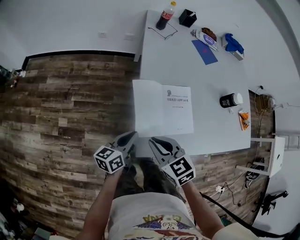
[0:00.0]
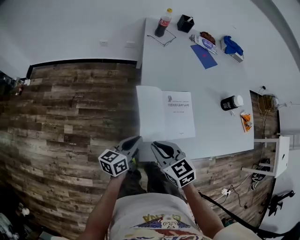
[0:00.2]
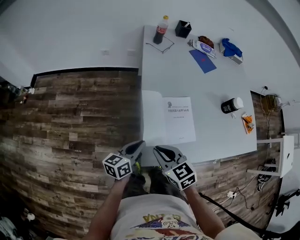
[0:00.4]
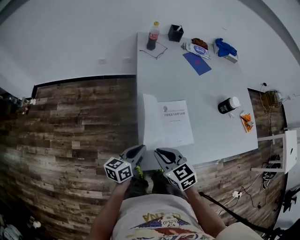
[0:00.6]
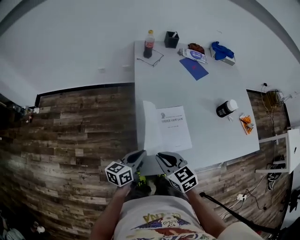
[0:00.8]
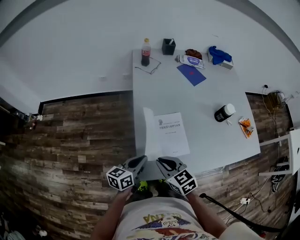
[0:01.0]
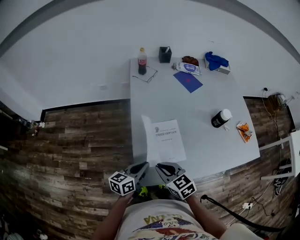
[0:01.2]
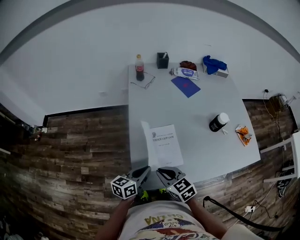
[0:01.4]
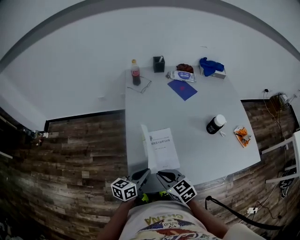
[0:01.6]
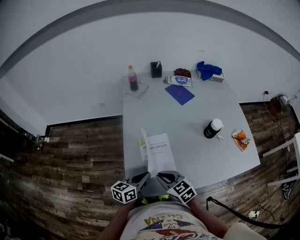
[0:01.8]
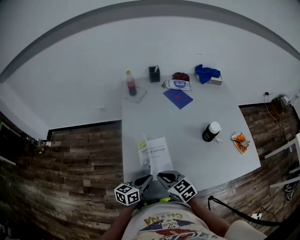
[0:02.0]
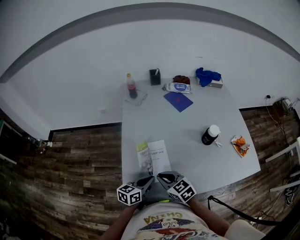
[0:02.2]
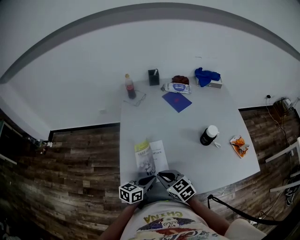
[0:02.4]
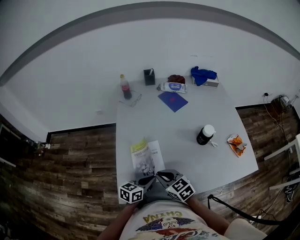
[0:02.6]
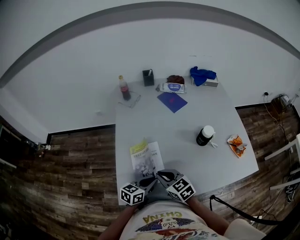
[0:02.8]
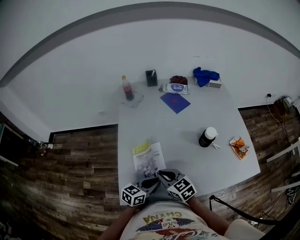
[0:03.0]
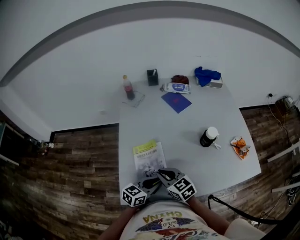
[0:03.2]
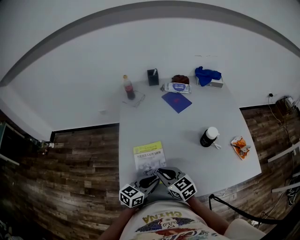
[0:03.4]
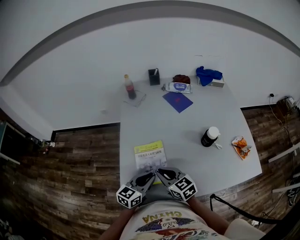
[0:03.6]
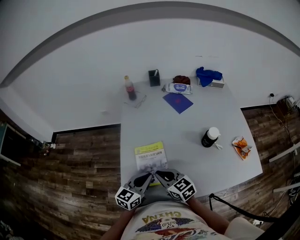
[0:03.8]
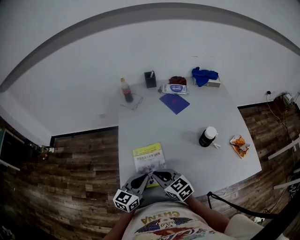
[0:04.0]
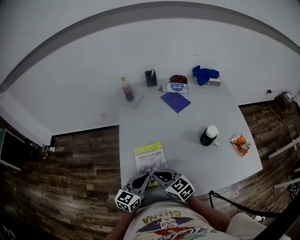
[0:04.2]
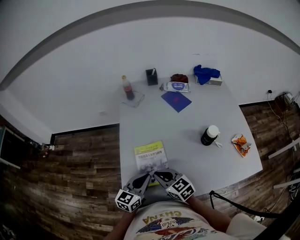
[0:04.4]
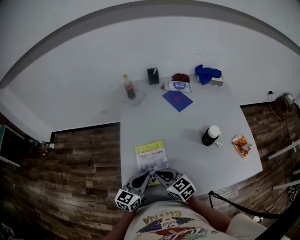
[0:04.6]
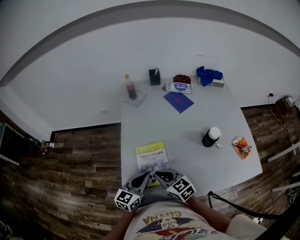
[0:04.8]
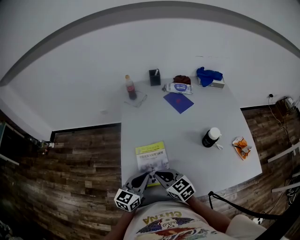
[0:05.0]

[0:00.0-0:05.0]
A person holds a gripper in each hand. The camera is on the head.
0.0 to 1.6 s: The right gripper is displaced to the right by about 15 cm, while the left gripper travels to the right and upward by about 20 cm.
1.6 to 3.4 s: The left gripper heads to the right, covering some 15 cm. Meanwhile the right gripper travels to the right and forward by about 10 cm.
3.4 to 5.0 s: The left gripper is displaced to the left by about 5 cm.

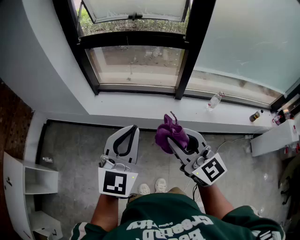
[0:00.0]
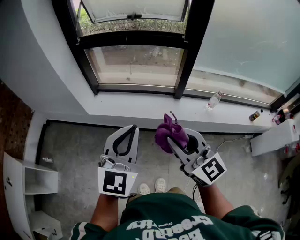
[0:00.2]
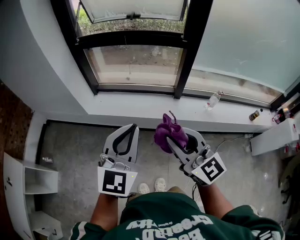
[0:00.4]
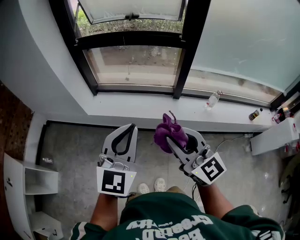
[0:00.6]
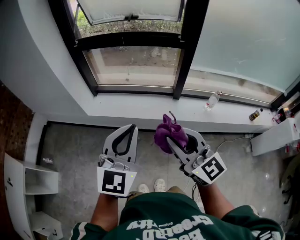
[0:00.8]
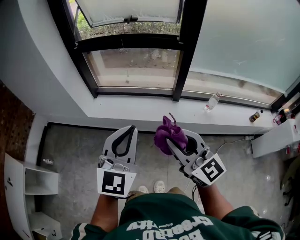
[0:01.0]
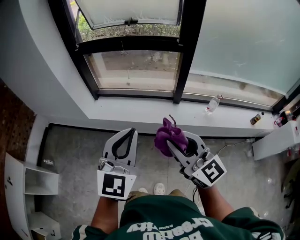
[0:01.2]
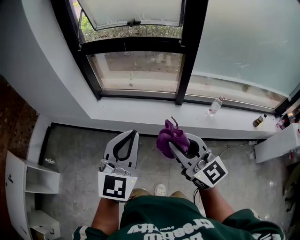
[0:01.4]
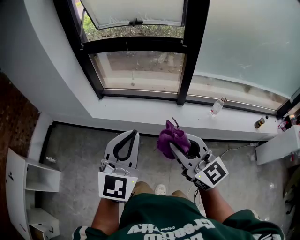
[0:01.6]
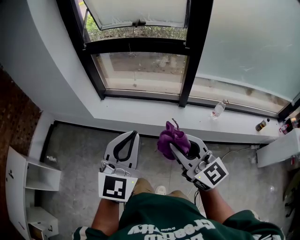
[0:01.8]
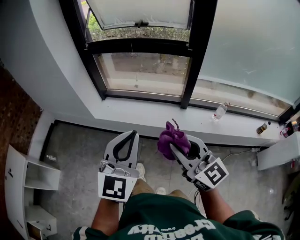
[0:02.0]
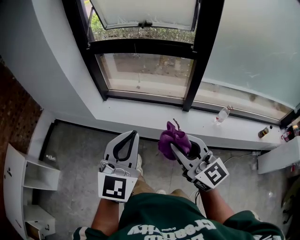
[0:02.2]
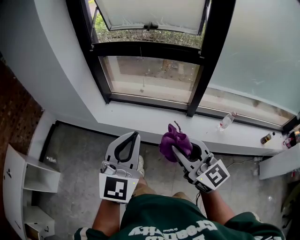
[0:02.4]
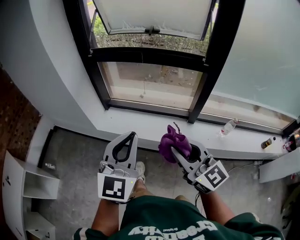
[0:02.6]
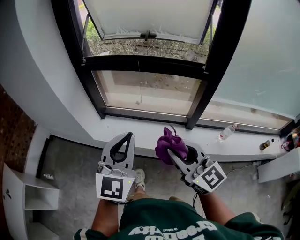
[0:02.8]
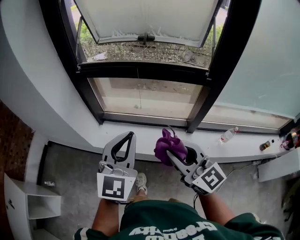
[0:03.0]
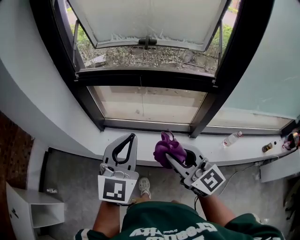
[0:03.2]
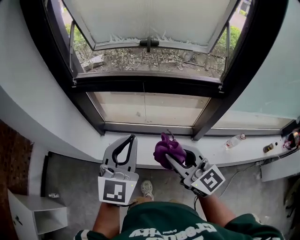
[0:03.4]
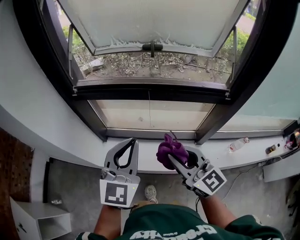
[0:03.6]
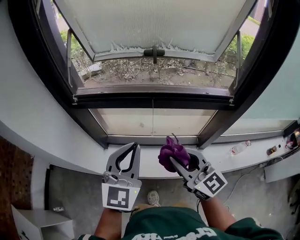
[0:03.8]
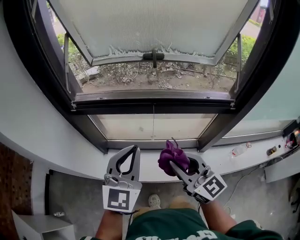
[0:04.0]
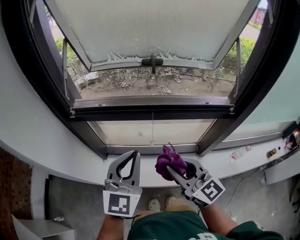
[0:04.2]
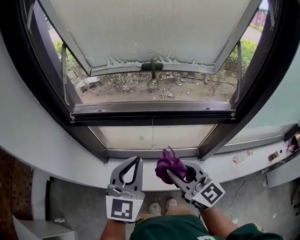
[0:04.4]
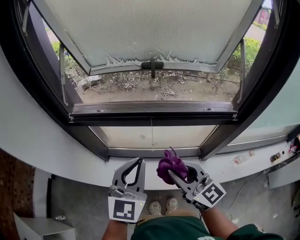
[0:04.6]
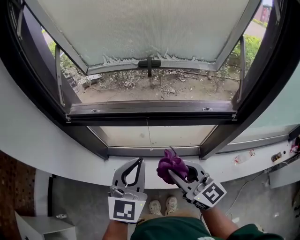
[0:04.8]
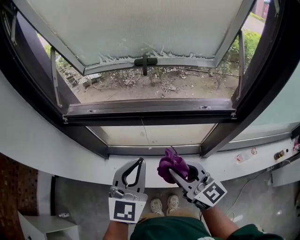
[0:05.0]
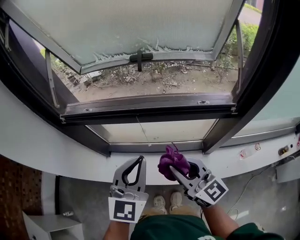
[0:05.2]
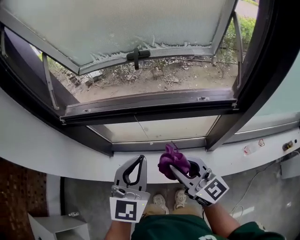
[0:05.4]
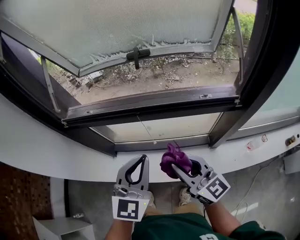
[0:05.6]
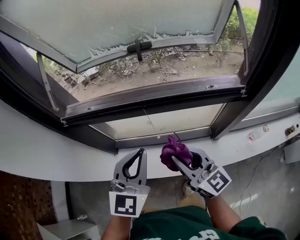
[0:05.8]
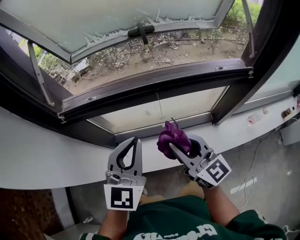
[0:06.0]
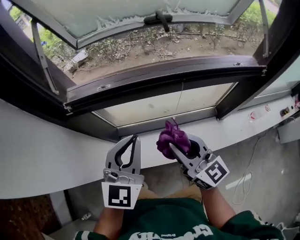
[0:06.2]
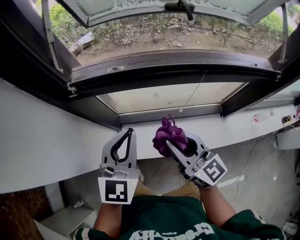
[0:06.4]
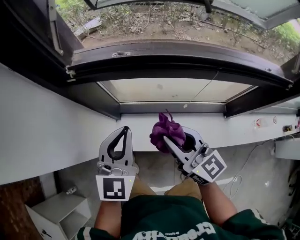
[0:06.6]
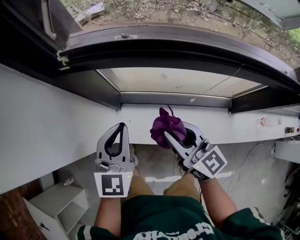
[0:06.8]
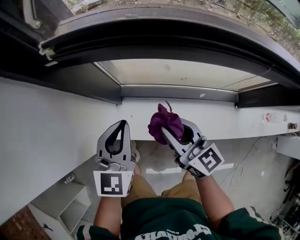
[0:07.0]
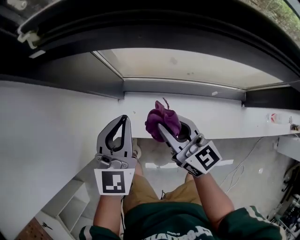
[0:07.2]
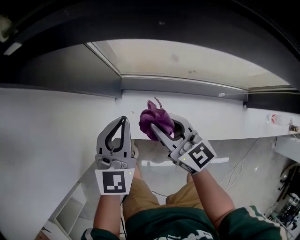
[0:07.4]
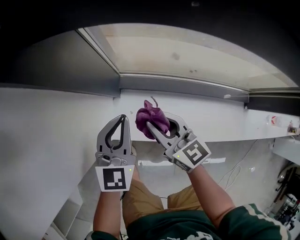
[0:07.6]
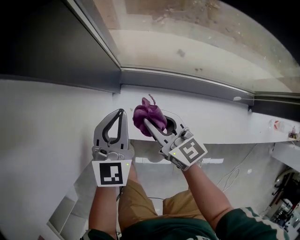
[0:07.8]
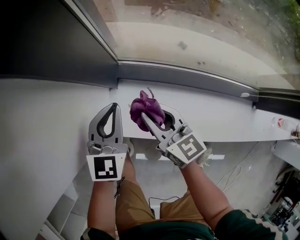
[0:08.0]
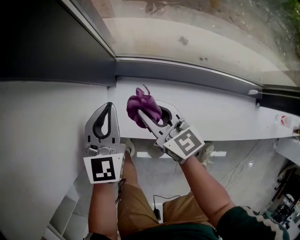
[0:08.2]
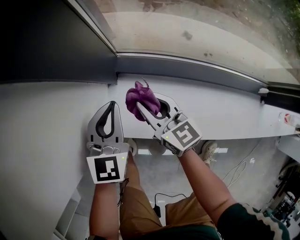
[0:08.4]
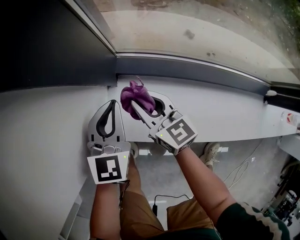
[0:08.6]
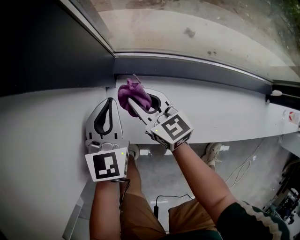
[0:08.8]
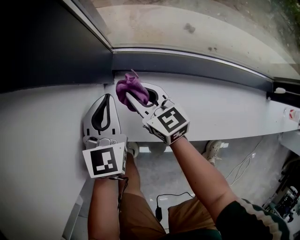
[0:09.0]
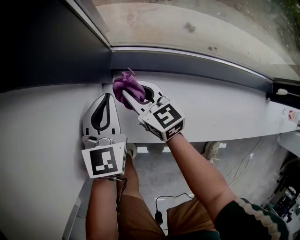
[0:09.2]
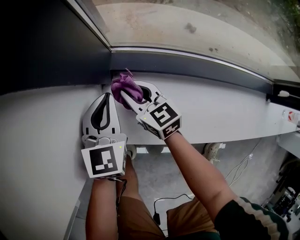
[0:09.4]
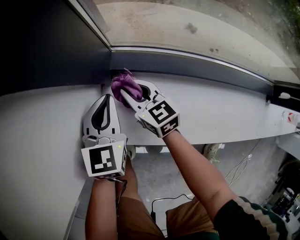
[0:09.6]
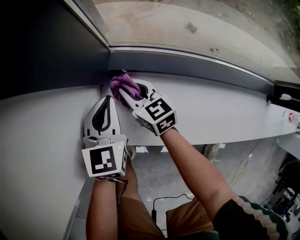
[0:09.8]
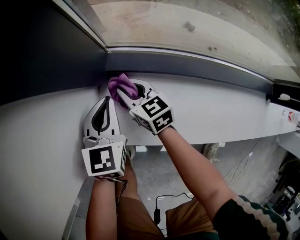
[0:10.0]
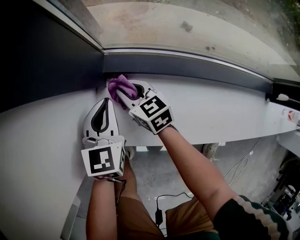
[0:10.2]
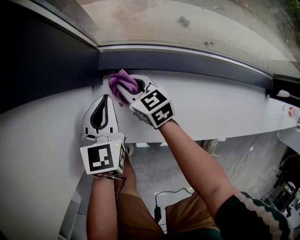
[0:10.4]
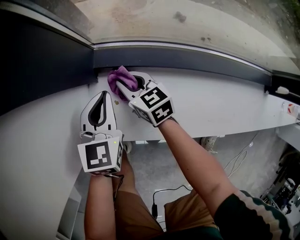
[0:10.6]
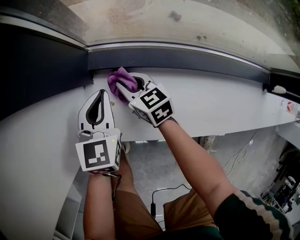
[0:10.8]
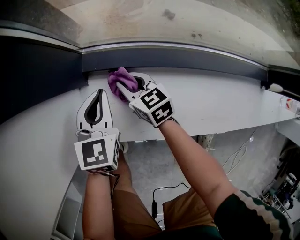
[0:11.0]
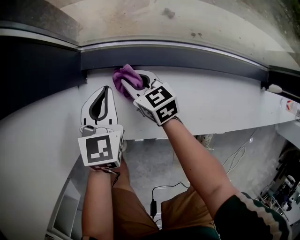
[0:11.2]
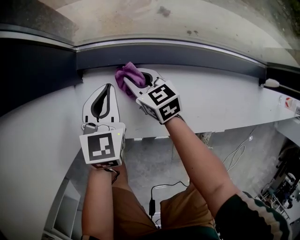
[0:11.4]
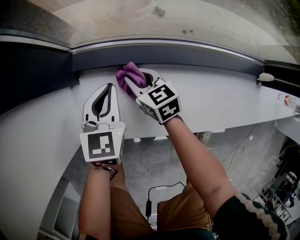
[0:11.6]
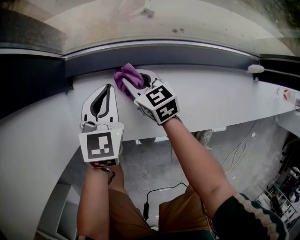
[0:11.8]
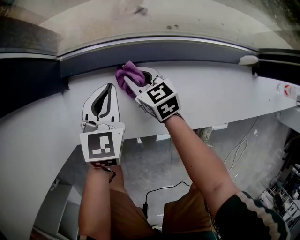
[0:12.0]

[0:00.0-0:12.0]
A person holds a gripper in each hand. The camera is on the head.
0.0 to 1.6 s: The left gripper changes place by about 5 cm. The right gripper moves to the right, approximately 5 cm.
1.6 to 3.0 s: Both grippers travel together forward, approximately 30 cm.
3.0 to 4.4 s: Both grippers travel together forward, approximately 25 cm.
4.4 to 6.0 s: Both grippers move forward and downward, roughly 10 cm. The left gripper moves roughly 10 cm to the right and comes back. The right gripper goes to the right and returns, roughly 10 cm each way.
6.0 to 7.6 s: The two grippers go some 40 cm downward and to the left. The right gripper swivels some 30 degrees. The left gripper turns by some 20 degrees.
7.6 to 9.0 s: The two grippers go some 20 cm downward.
9.0 to 10.4 s: The right gripper is displaced downward by roughly 5 cm.
10.4 to 12.0 s: Both grippers move to the right, roughly 15 cm.

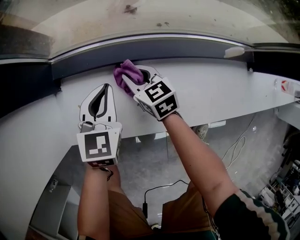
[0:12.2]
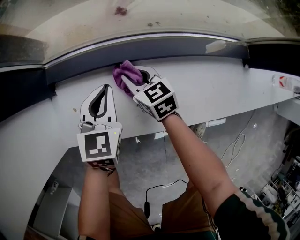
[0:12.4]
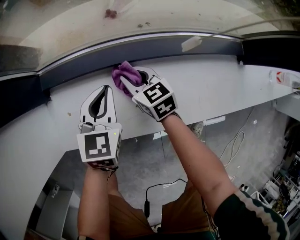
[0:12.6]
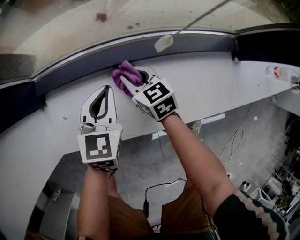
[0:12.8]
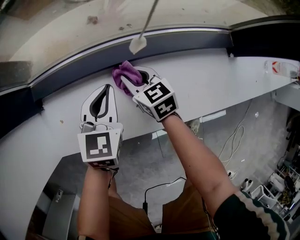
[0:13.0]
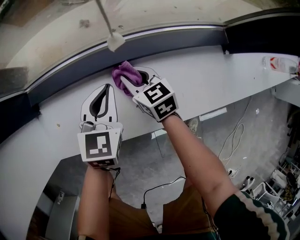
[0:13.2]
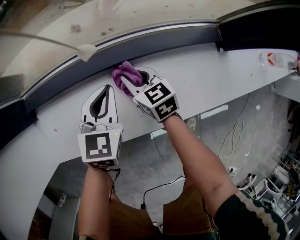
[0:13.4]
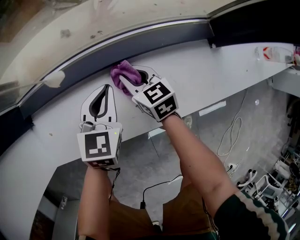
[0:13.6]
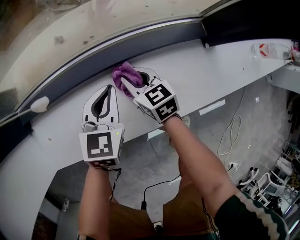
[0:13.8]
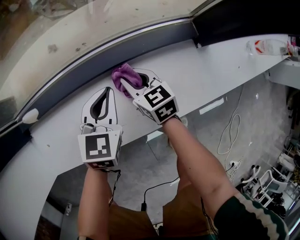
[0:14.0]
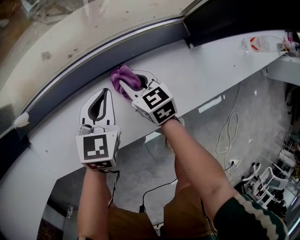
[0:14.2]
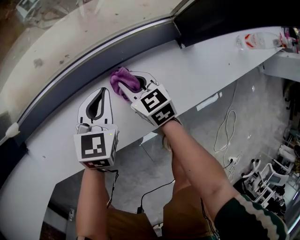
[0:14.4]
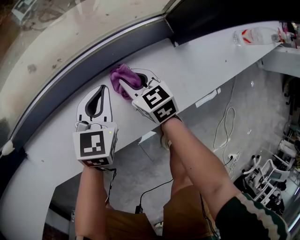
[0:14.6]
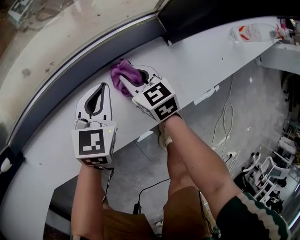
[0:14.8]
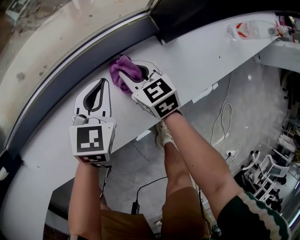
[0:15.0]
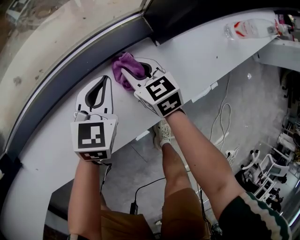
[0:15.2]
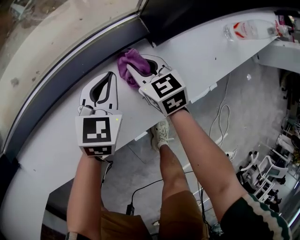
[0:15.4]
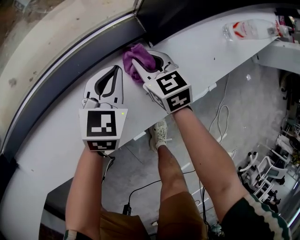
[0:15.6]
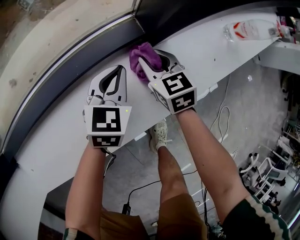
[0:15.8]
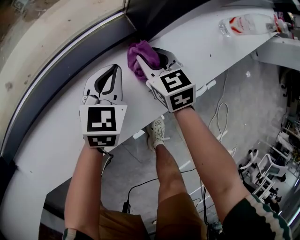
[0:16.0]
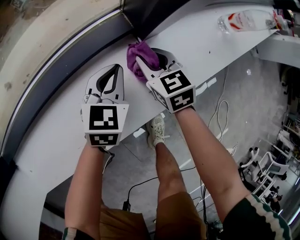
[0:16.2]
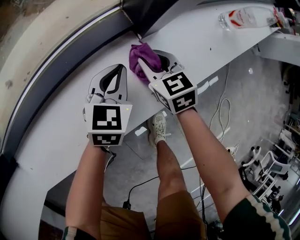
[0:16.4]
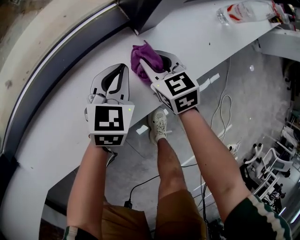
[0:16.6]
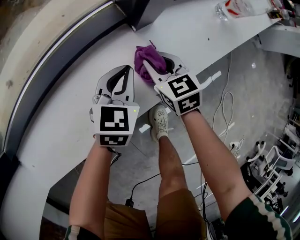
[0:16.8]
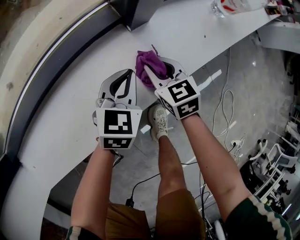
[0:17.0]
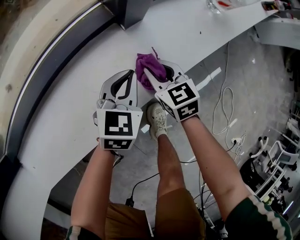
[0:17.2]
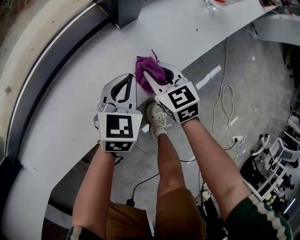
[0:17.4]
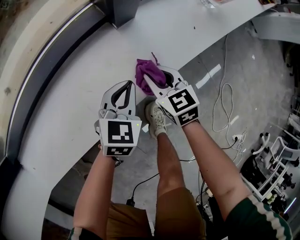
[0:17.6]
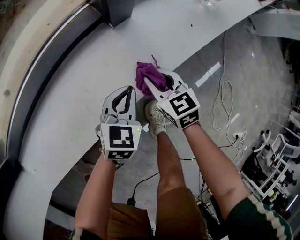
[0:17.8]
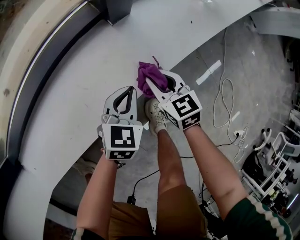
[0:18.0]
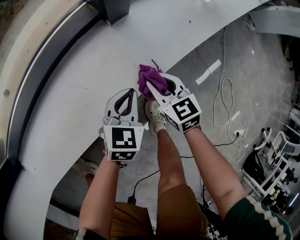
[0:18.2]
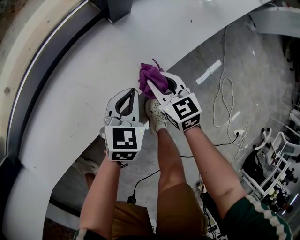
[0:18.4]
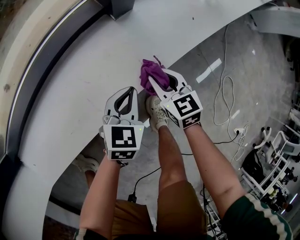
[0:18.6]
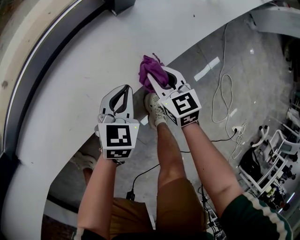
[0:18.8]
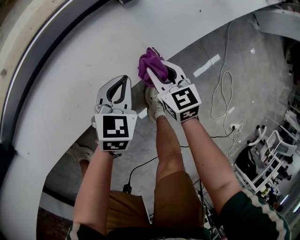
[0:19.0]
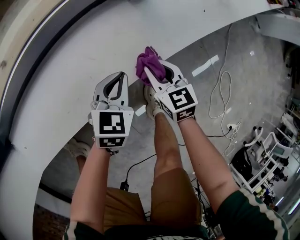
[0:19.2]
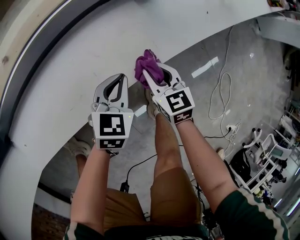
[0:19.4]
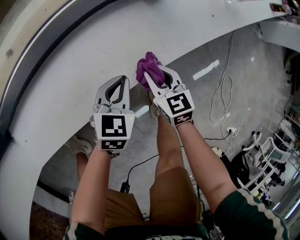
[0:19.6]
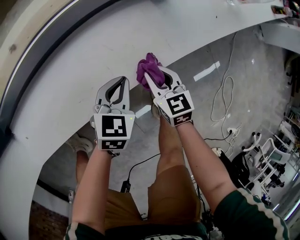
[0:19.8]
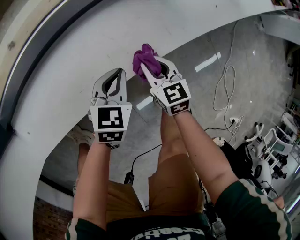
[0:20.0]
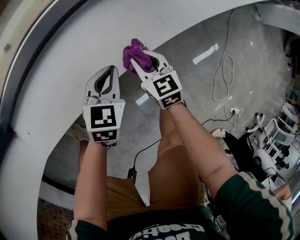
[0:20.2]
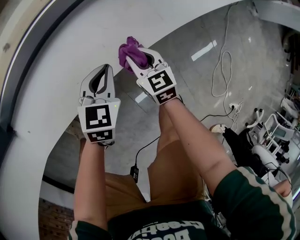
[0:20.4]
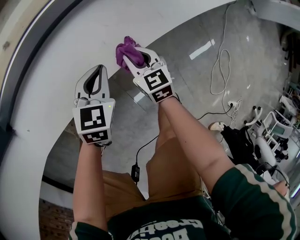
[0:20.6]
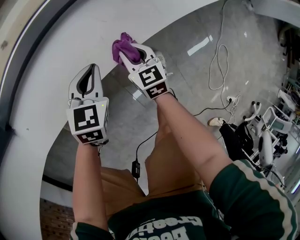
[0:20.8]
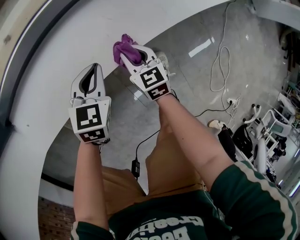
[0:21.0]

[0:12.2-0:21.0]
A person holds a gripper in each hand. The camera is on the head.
12.2 to 13.6 s: The two grippers go roughly 20 cm to the right.
13.6 to 15.2 s: Both grippers move to the right, roughly 25 cm.
15.2 to 16.6 s: Both grippers move to the right, about 10 cm.
16.6 to 18.0 s: Both grippers travel together backward and to the right, some 15 cm.
18.0 to 19.6 s: The two grippers go roughly 10 cm to the left and backward.
19.6 to 21.0 s: The grippers both shift to the left and backward by some 10 cm.
